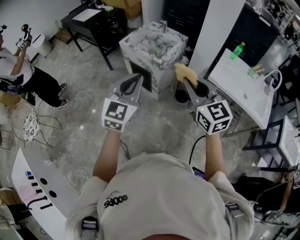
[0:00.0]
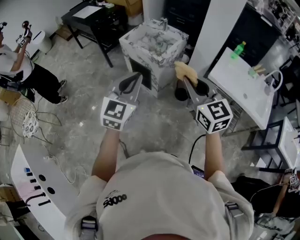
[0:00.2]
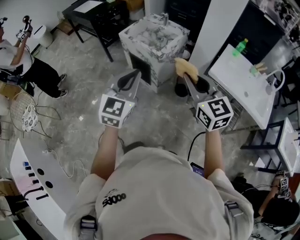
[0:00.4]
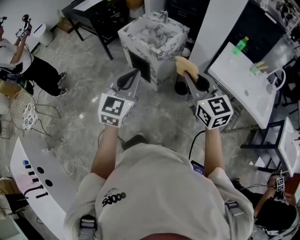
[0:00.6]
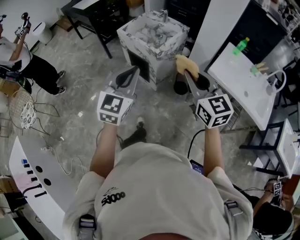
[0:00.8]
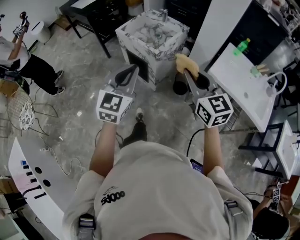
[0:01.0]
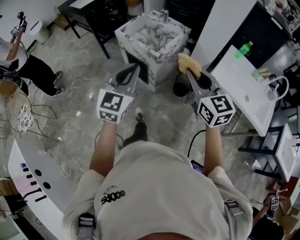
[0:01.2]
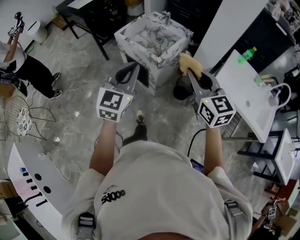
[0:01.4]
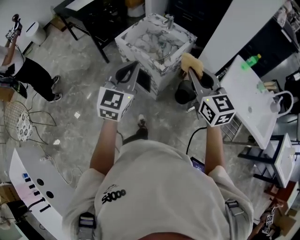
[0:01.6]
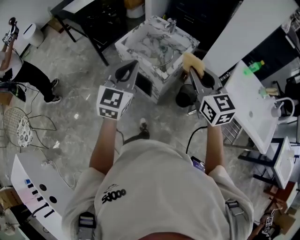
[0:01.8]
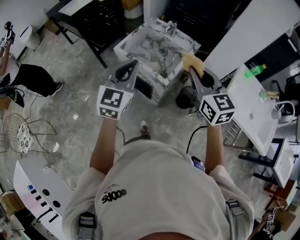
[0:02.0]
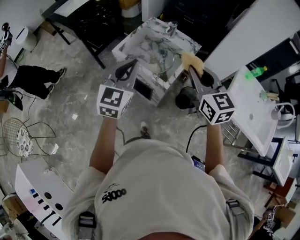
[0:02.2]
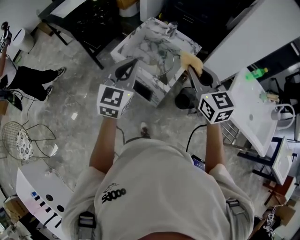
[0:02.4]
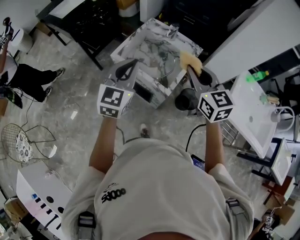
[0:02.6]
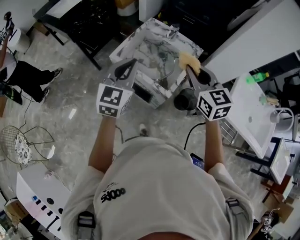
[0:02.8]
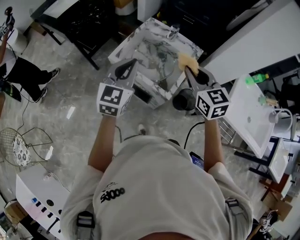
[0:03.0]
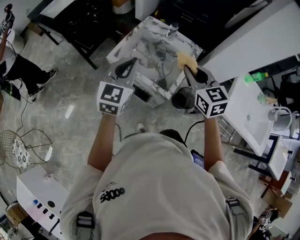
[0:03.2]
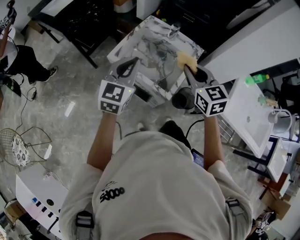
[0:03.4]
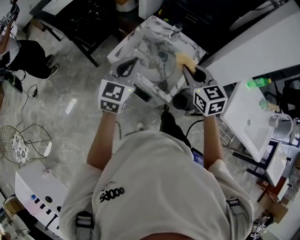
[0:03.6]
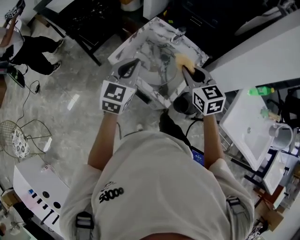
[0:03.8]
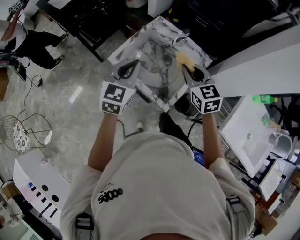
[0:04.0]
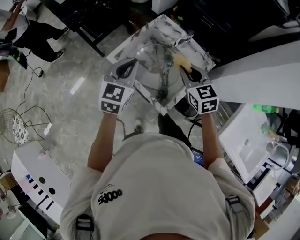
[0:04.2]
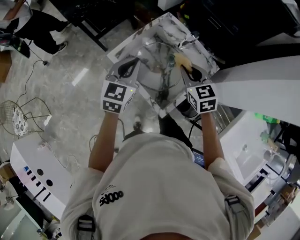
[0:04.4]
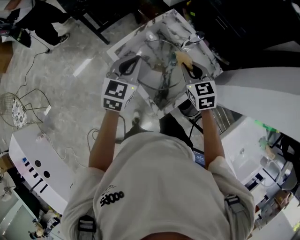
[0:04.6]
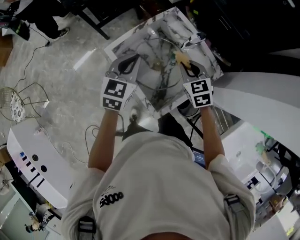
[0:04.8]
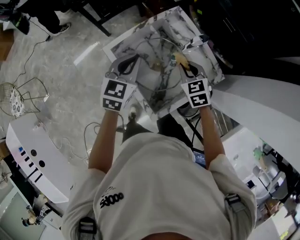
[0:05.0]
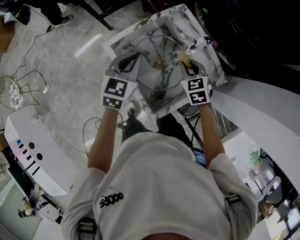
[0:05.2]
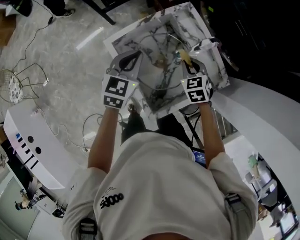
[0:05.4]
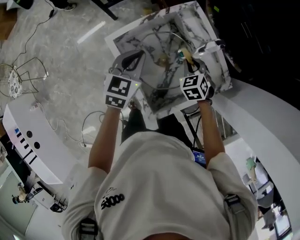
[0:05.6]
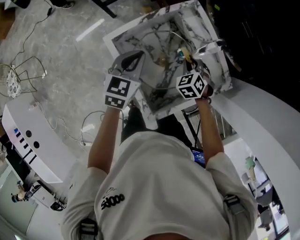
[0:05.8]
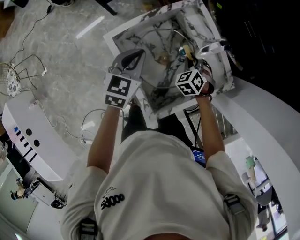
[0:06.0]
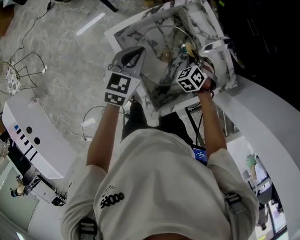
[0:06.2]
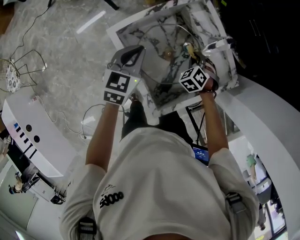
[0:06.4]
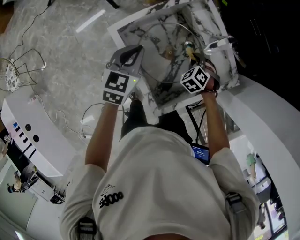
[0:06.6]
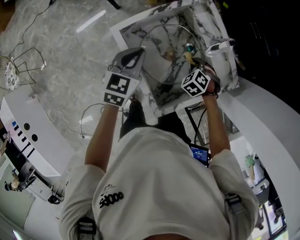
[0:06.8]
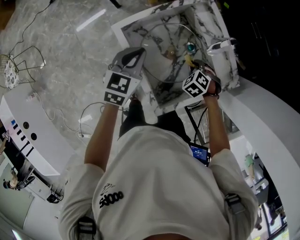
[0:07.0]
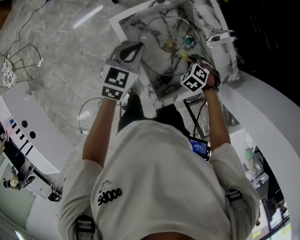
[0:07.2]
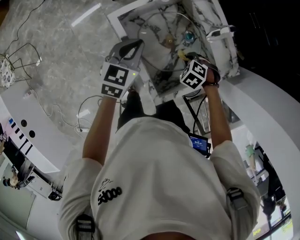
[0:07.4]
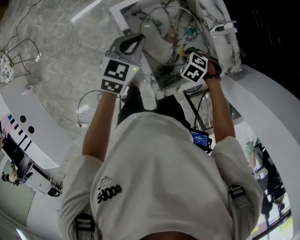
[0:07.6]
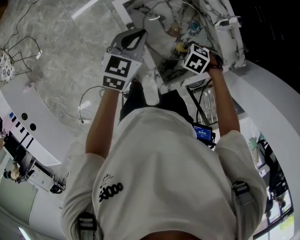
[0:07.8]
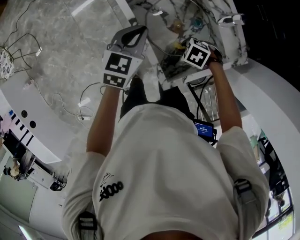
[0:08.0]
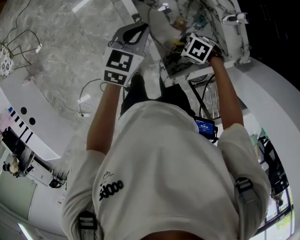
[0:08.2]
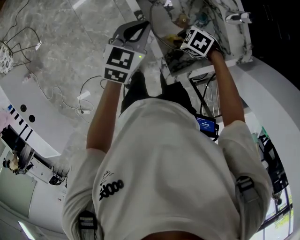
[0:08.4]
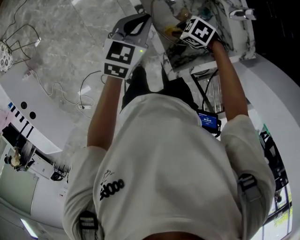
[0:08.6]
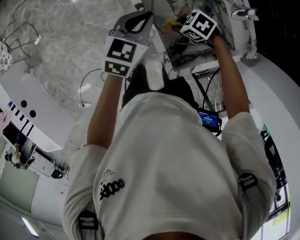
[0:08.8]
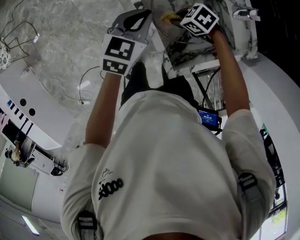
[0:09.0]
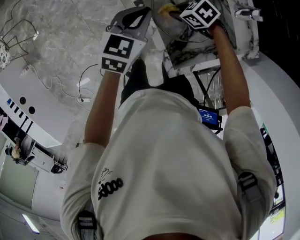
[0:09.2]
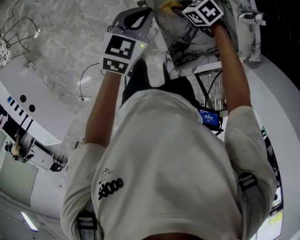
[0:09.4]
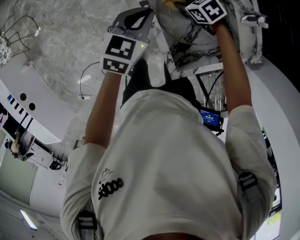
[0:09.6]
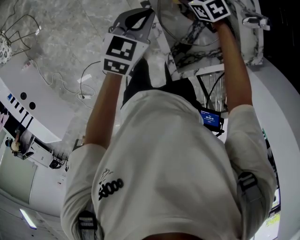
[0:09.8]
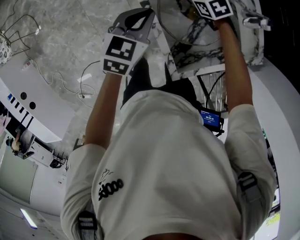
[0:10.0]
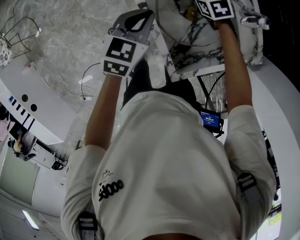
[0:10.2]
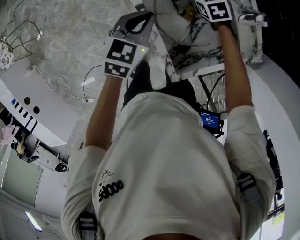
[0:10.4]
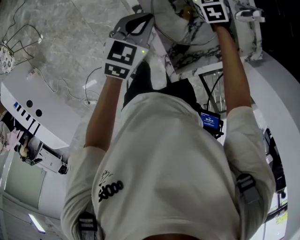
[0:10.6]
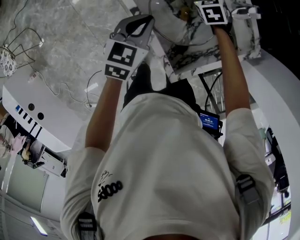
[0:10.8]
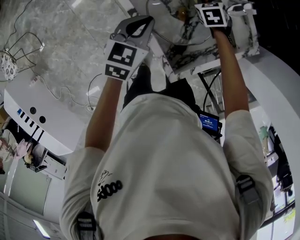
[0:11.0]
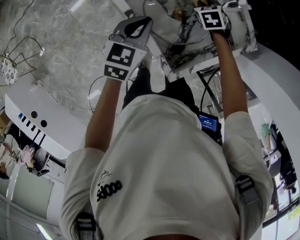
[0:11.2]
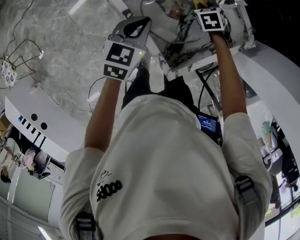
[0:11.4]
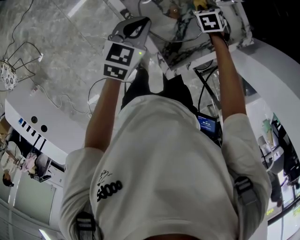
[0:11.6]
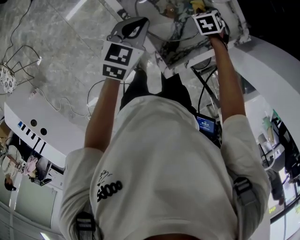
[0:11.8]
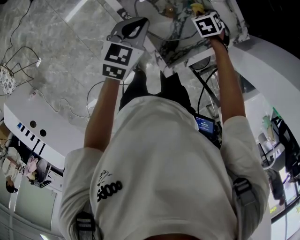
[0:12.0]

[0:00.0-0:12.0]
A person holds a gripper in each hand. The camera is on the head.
0:00.0 to 0:01.6: The grippers both shift forward by approximately 20 cm.
0:01.6 to 0:03.0: Both grippers move forward, roughly 25 cm.
0:03.0 to 0:04.4: Both grippers travel together forward and downward, approximately 20 cm.
0:04.4 to 0:06.0: The right gripper moves downward and forward, roughly 25 cm, and rotates some 40 degrees. Meanwhile the left gripper moves downward and forward, about 15 cm.
0:06.0 to 0:07.6: The left gripper changes place by about 5 cm, while the right gripper changes place by roughly 15 cm, and changes its angle by some 40 degrees.
0:07.6 to 0:09.0: The right gripper moves approximately 15 cm, and swivels about 30 degrees.
0:09.0 to 0:10.4: The right gripper ends up approximately 20 cm from where it was, and rotates roughly 40 degrees.
0:10.4 to 0:12.0: The right gripper moves roughly 20 cm, and turns by approximately 30 degrees. The left gripper shifts by about 5 cm.

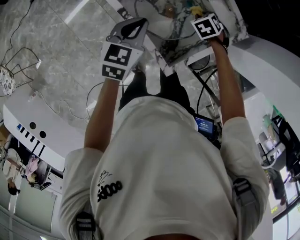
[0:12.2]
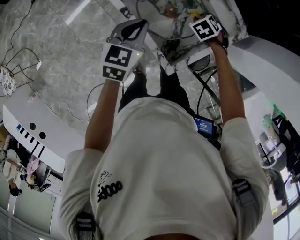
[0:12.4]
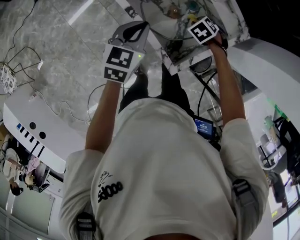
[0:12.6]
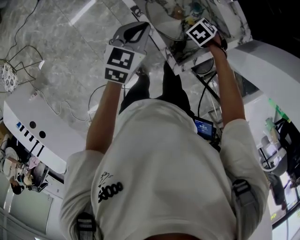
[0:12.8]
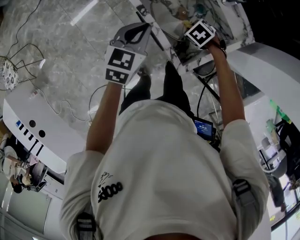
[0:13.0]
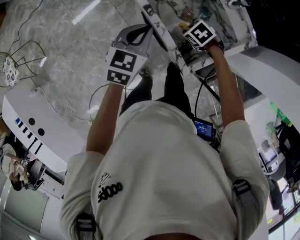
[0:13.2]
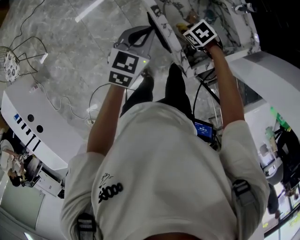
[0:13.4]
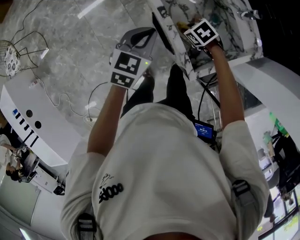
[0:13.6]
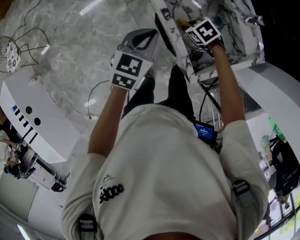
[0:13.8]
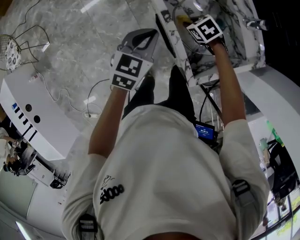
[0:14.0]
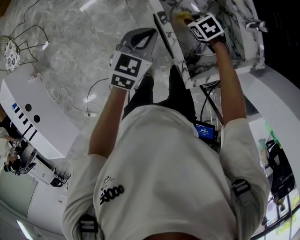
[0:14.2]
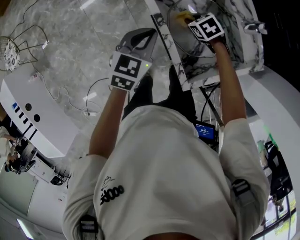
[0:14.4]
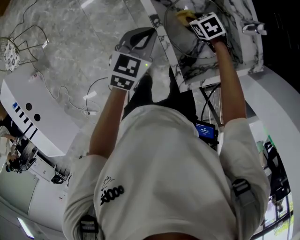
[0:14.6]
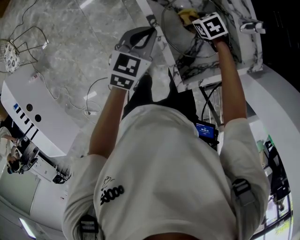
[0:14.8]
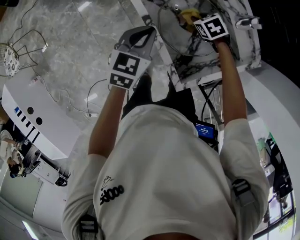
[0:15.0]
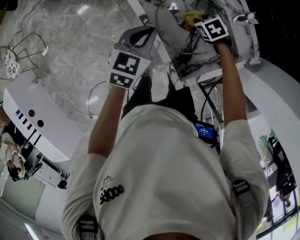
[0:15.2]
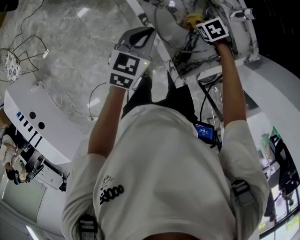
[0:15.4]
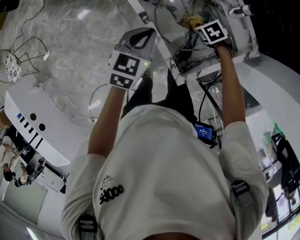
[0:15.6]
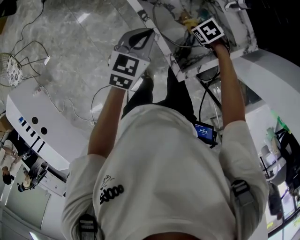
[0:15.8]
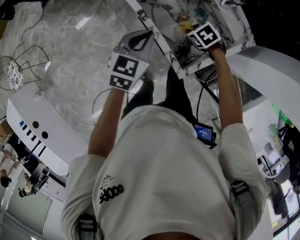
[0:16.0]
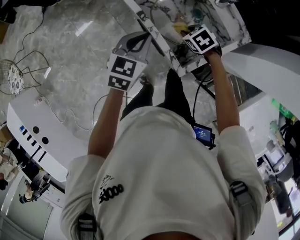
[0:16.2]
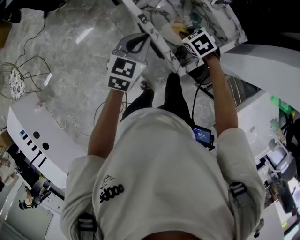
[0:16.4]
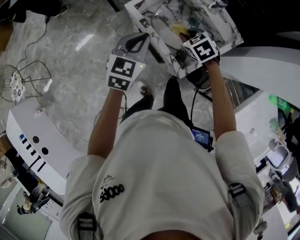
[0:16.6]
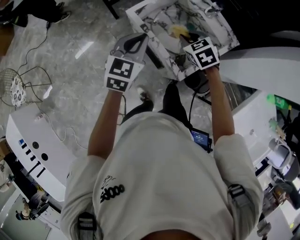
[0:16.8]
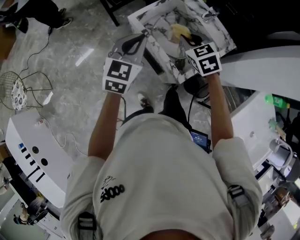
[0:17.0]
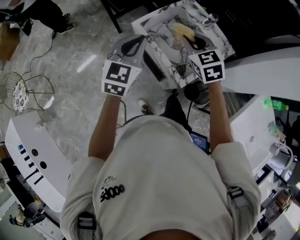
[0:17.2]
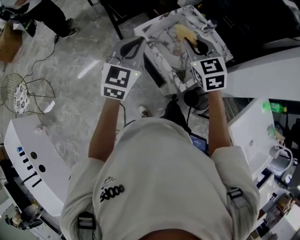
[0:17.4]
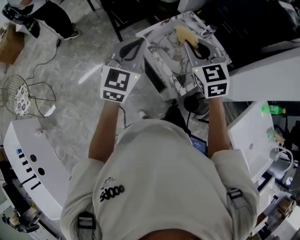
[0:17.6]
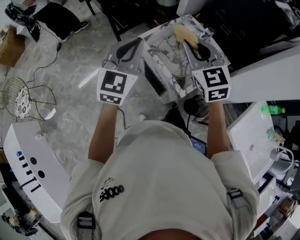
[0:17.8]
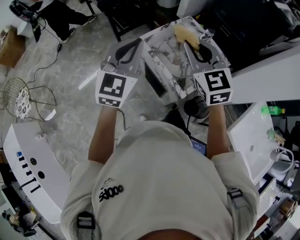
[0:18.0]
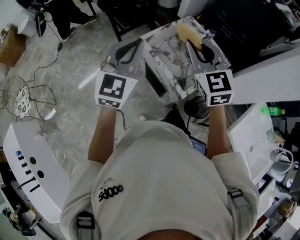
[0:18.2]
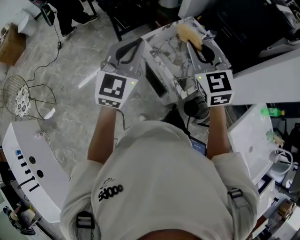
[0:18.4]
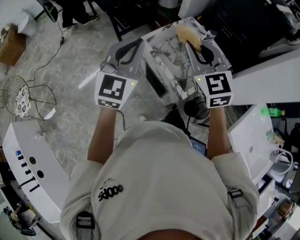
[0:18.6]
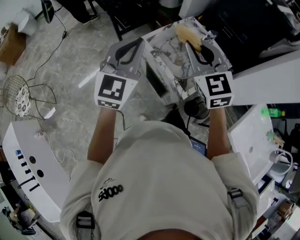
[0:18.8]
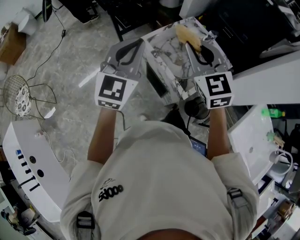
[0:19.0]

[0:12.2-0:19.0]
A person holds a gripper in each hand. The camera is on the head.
0:12.2 to 0:13.6: The left gripper changes place by approximately 10 cm, while the right gripper moves some 20 cm, and swivels roughly 30 degrees.
0:13.6 to 0:15.0: The right gripper shifts about 15 cm to the right and forward. The left gripper goes some 5 cm to the right.
0:15.0 to 0:16.2: The right gripper moves some 15 cm, while the left gripper changes place by about 10 cm.
0:16.2 to 0:17.6: The right gripper moves upward, approximately 35 cm, and points its fingers approximately 50 degrees further upward. The left gripper goes some 20 cm upward, and changes its angle by some 30 degrees.
0:17.6 to 0:19.0: The left gripper shifts by approximately 5 cm, while the right gripper heads upward, covering approximately 5 cm.

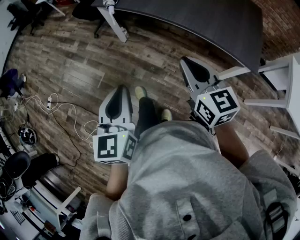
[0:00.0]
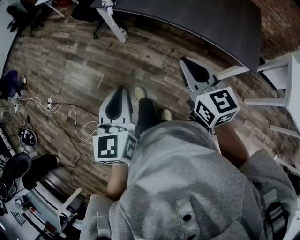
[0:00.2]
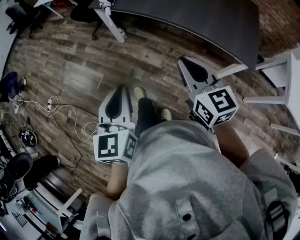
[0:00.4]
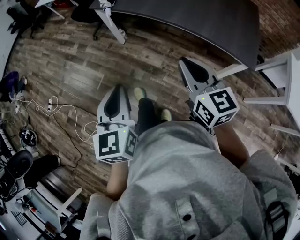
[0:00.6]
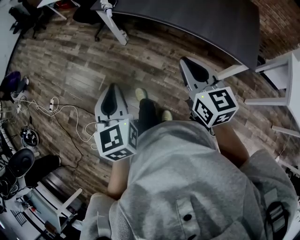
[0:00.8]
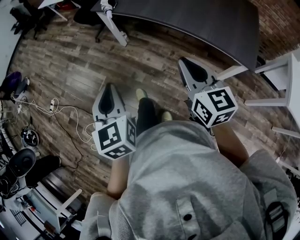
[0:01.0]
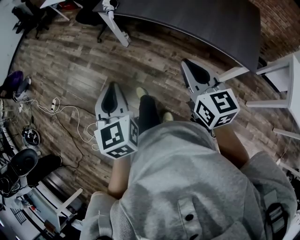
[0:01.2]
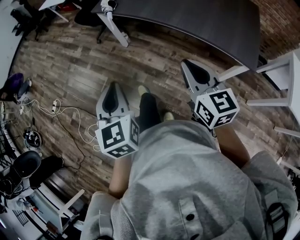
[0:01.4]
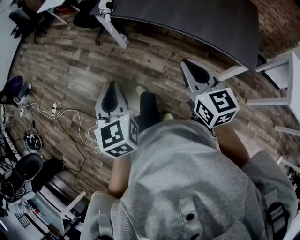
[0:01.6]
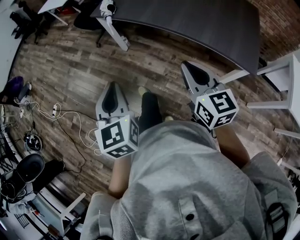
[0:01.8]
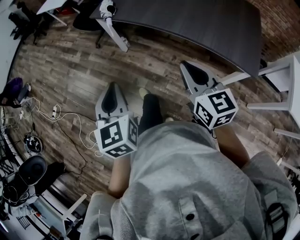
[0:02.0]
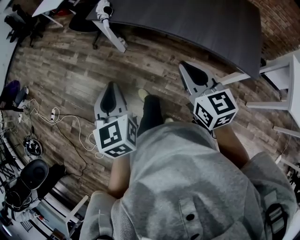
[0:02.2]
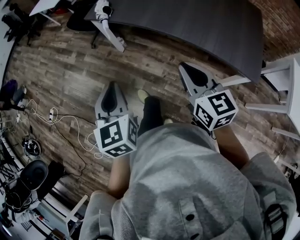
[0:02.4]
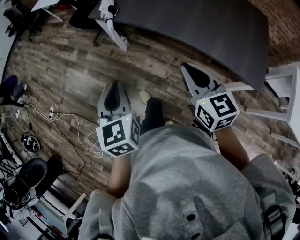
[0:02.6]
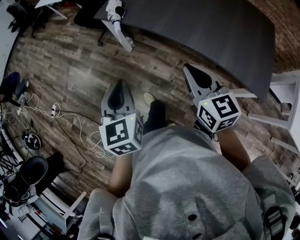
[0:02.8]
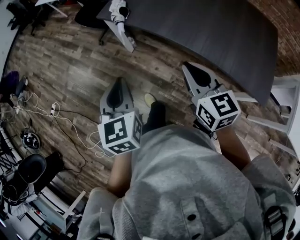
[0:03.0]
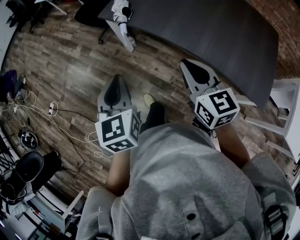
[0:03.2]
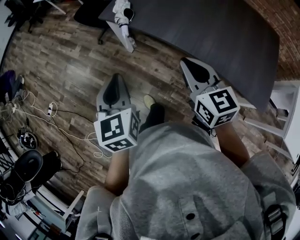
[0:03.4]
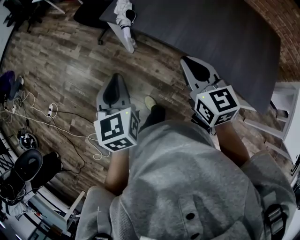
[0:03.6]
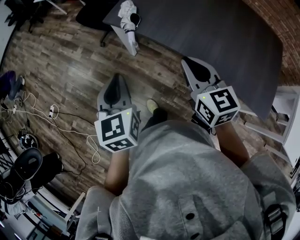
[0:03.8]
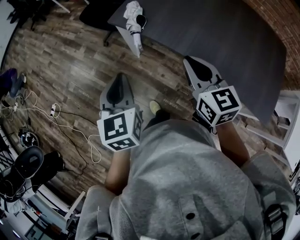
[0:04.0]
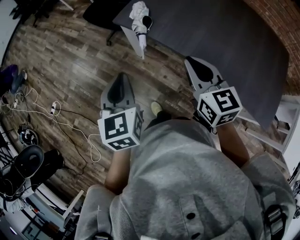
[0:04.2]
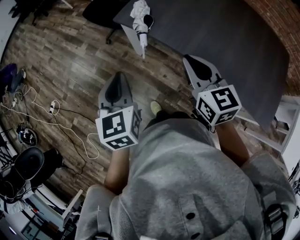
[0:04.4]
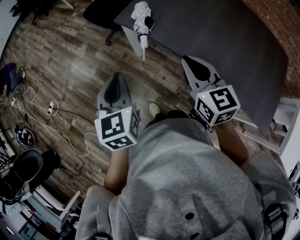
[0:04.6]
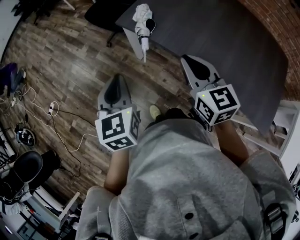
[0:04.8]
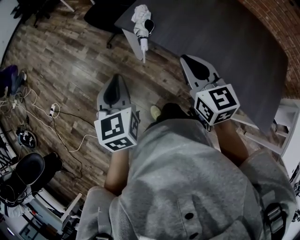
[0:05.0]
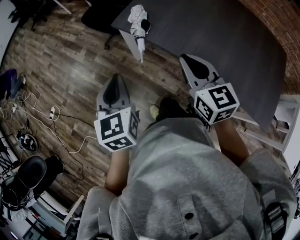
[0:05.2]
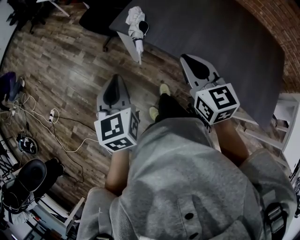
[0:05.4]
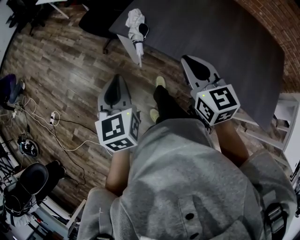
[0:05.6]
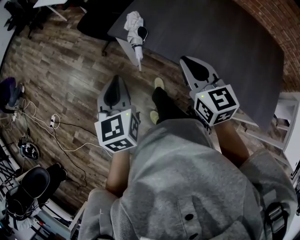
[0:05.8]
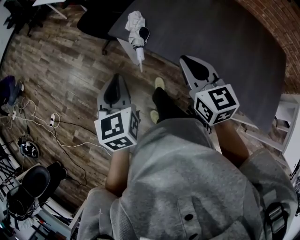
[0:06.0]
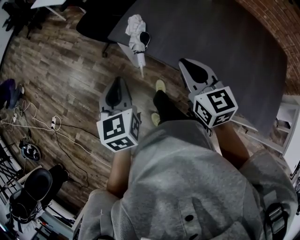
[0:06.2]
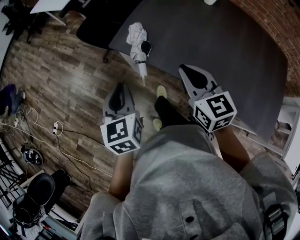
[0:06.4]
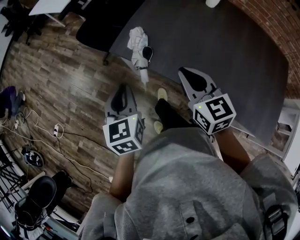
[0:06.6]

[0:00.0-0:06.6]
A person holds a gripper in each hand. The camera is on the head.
0:00.0 to 0:01.6: The grippers stay close to where they were, moving slightly.
0:01.6 to 0:03.2: Both grippers travel together forward, some 25 cm.
0:03.2 to 0:05.0: The right gripper shifts about 15 cm forward. The left gripper is displaced forward and to the left by some 15 cm.
0:05.0 to 0:06.6: The two grippers go roughly 15 cm forward.
